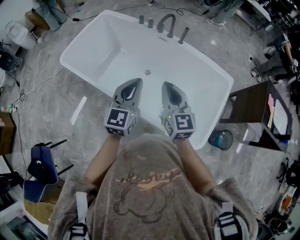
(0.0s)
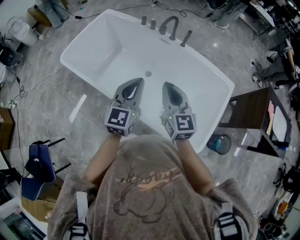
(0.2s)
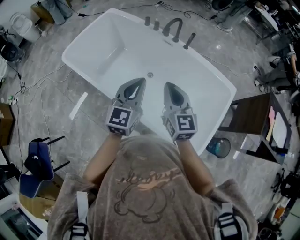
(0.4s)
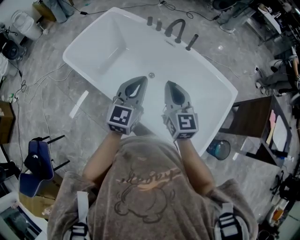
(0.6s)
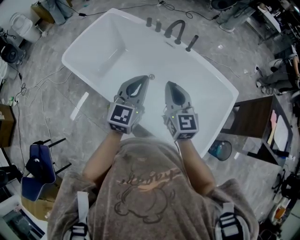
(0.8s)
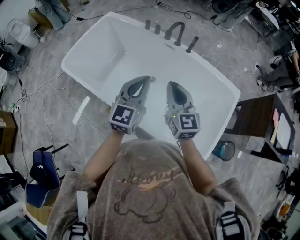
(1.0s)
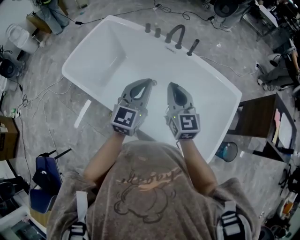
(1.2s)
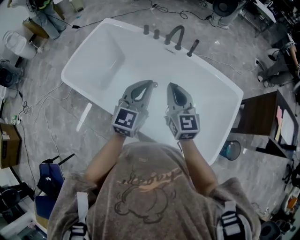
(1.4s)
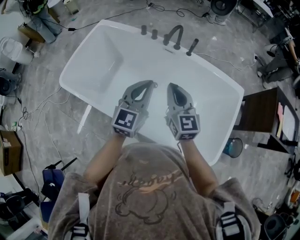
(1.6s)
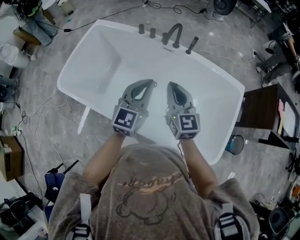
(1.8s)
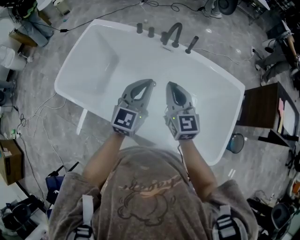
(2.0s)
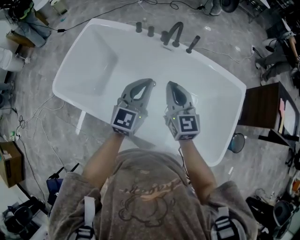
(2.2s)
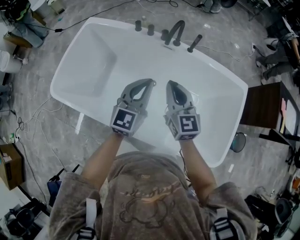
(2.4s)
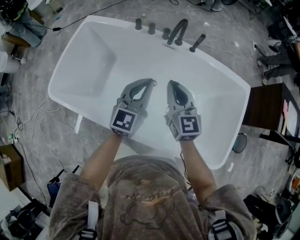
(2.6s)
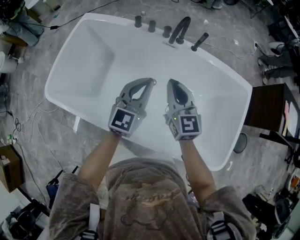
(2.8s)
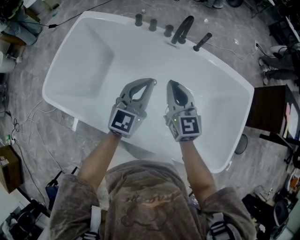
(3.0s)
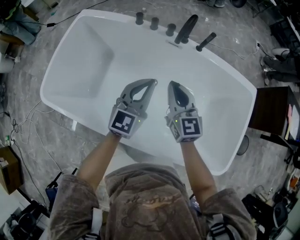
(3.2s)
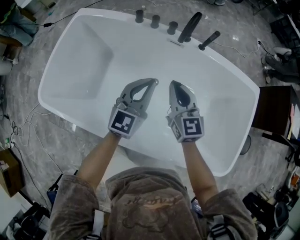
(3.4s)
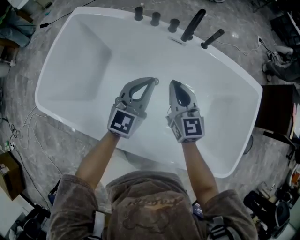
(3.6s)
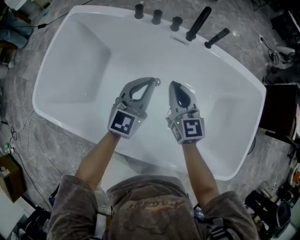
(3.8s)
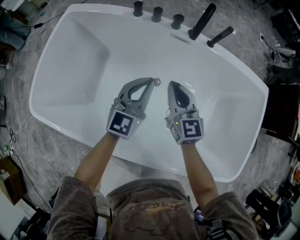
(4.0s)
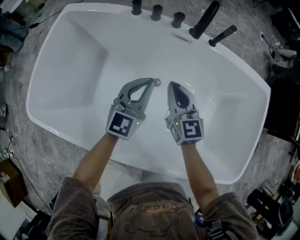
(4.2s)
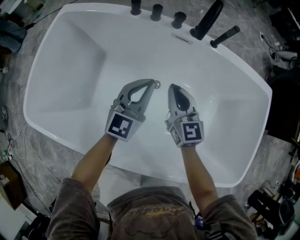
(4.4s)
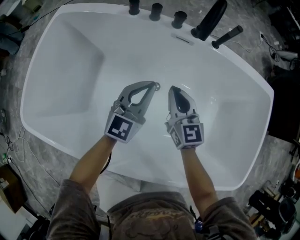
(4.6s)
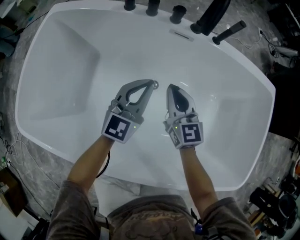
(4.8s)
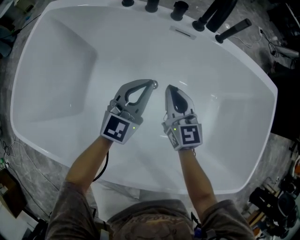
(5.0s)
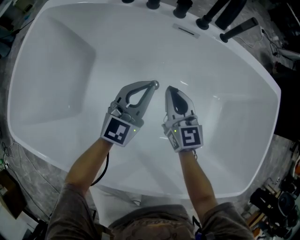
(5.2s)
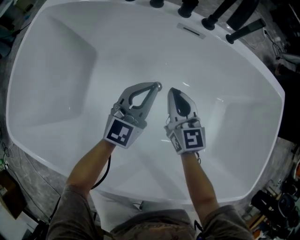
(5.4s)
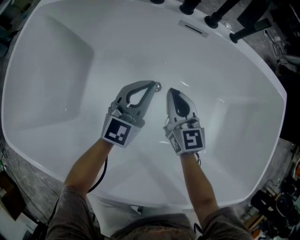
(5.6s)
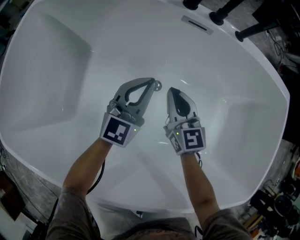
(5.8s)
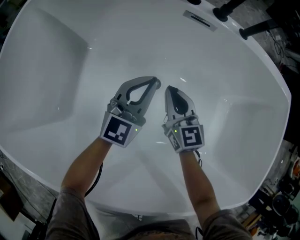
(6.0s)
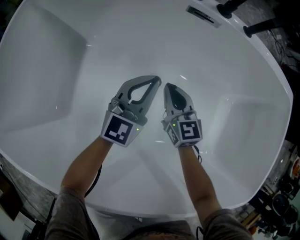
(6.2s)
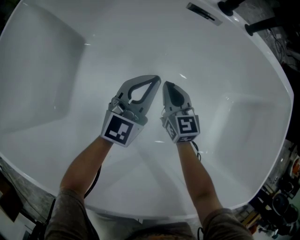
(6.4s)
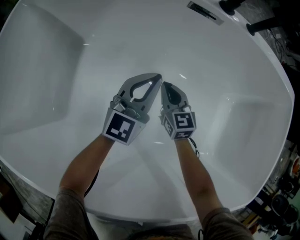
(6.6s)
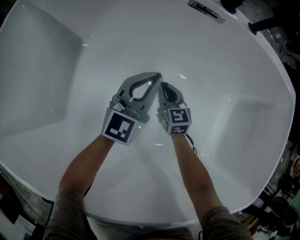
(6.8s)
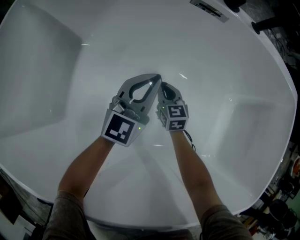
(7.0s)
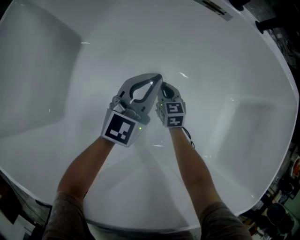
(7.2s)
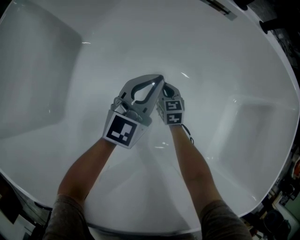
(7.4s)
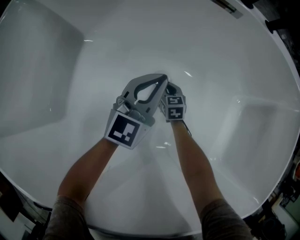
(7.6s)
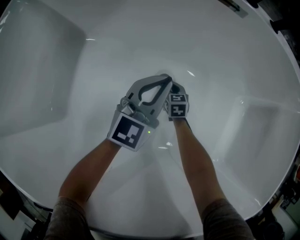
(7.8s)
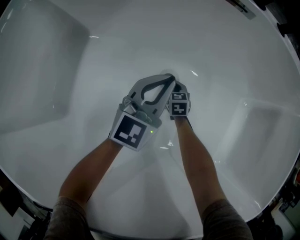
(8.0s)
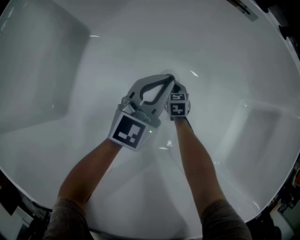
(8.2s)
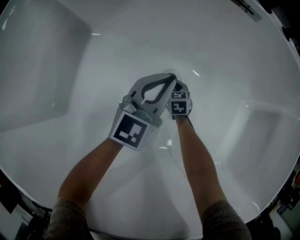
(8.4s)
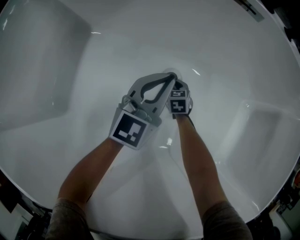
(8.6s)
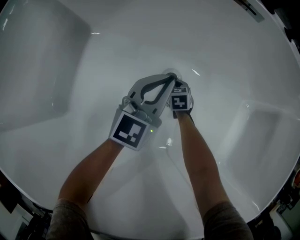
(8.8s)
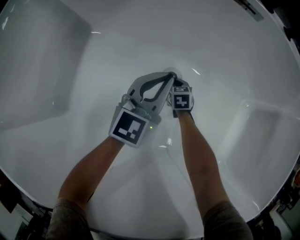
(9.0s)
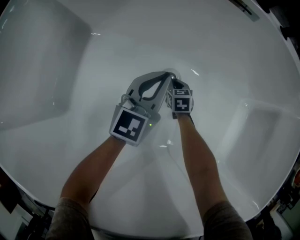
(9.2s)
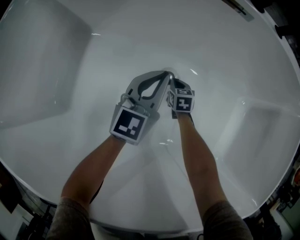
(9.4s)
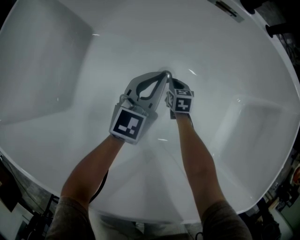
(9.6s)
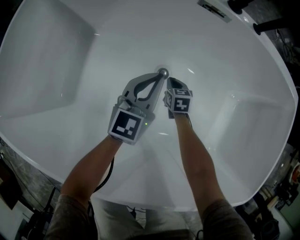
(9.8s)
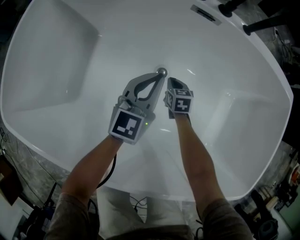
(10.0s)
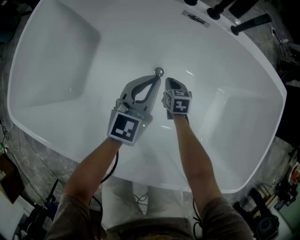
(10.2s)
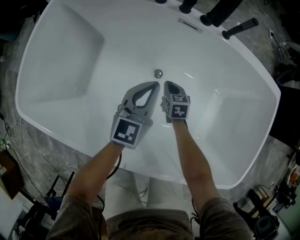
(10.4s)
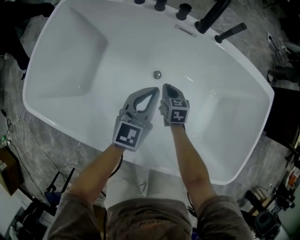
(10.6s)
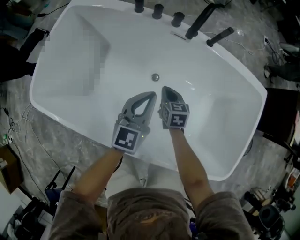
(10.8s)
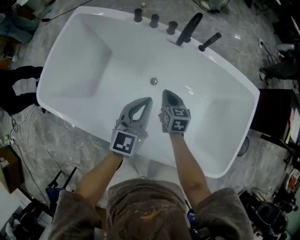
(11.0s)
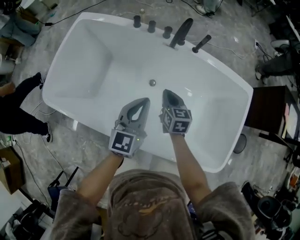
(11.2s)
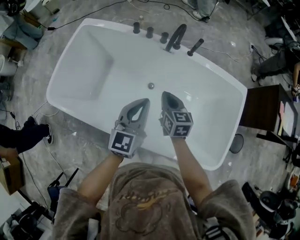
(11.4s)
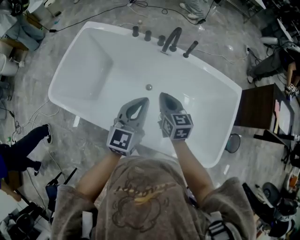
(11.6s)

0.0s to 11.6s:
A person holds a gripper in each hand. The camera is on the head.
0.0s to 1.4s: Both grippers move forward, about 15 cm.
1.4s to 2.8s: The grippers both shift forward, downward and to the left by about 15 cm.
2.8s to 4.4s: The right gripper is displaced downward by roughly 20 cm; the left gripper heads downward and forward, covering about 25 cm.
4.4s to 5.8s: Both grippers move downward, approximately 15 cm.
5.8s to 7.2s: The left gripper travels downward by some 10 cm, while the right gripper travels downward by some 25 cm, and turns by roughly 20 degrees.
7.2s to 8.8s: The left gripper travels downward by roughly 5 cm. The right gripper travels downward by about 10 cm.
8.8s to 10.2s: The grippers both shift upward by approximately 25 cm.
10.2s to 11.6s: The right gripper is displaced upward by approximately 50 cm, and swivels some 20 degrees. Meanwhile the left gripper moves upward and backward, roughly 40 cm.

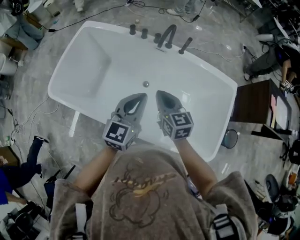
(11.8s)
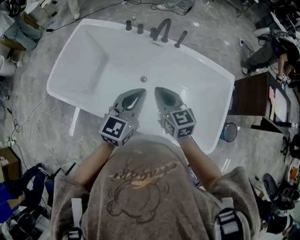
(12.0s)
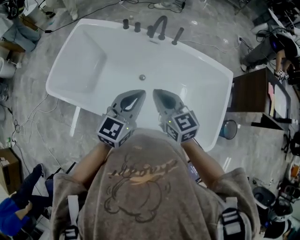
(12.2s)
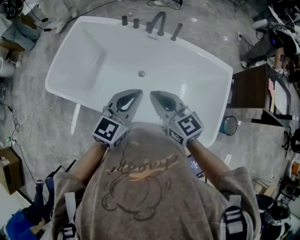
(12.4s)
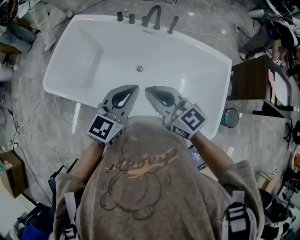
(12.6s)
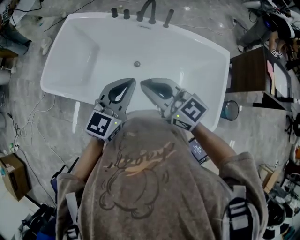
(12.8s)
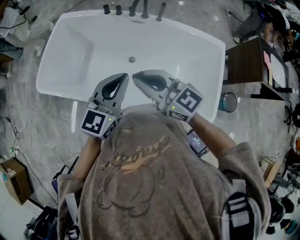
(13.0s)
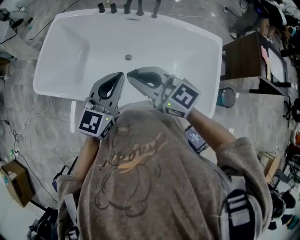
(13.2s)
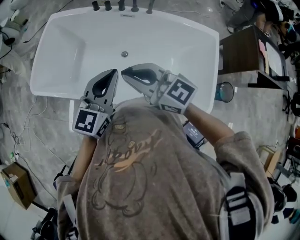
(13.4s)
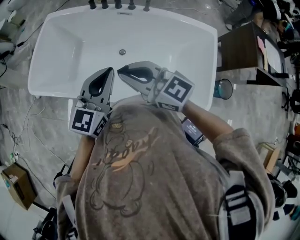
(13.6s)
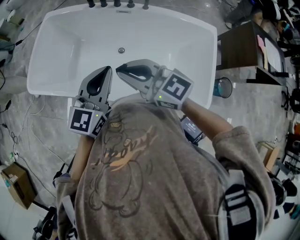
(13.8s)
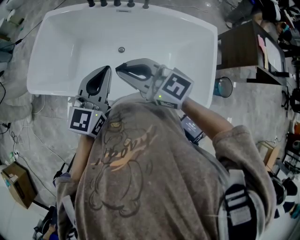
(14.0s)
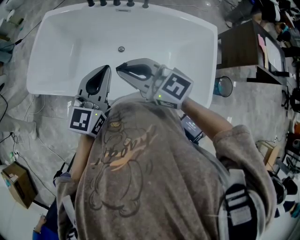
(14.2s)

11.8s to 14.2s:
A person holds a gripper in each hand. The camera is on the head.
11.8s to 13.0s: The left gripper travels backward by approximately 10 cm, while the right gripper heads backward and upward, covering some 15 cm, and swivels approximately 30 degrees.
13.0s to 14.2s: There are only small adjustments of the grippers.

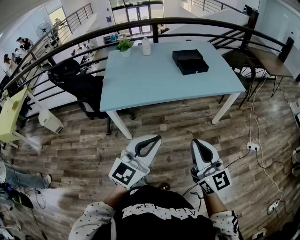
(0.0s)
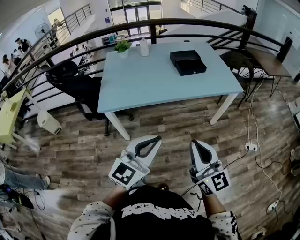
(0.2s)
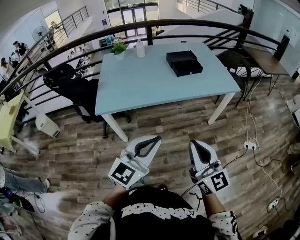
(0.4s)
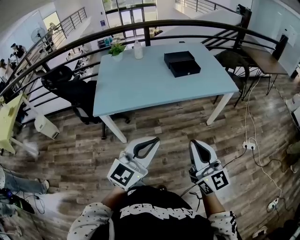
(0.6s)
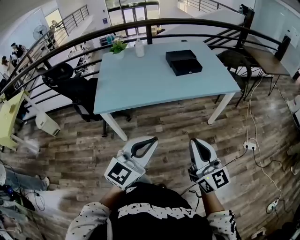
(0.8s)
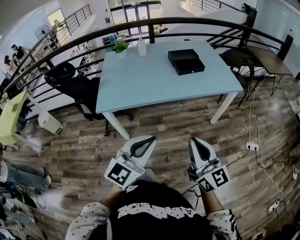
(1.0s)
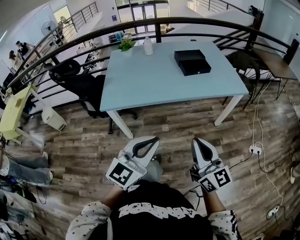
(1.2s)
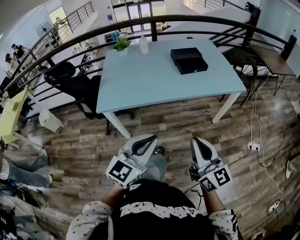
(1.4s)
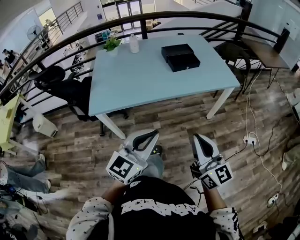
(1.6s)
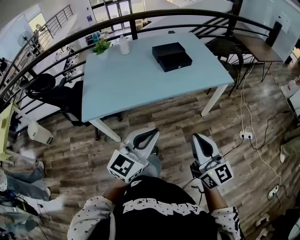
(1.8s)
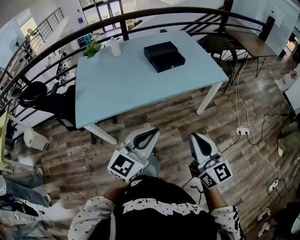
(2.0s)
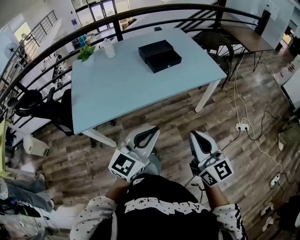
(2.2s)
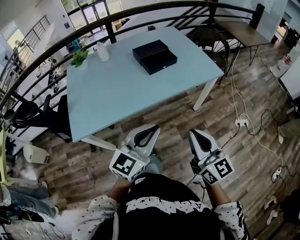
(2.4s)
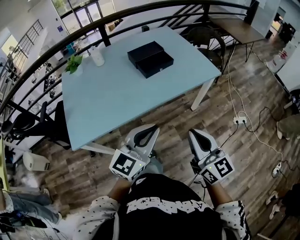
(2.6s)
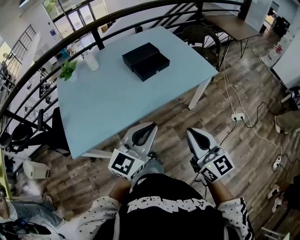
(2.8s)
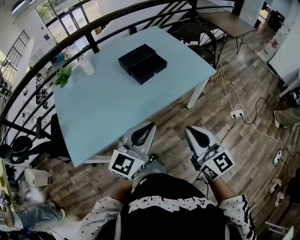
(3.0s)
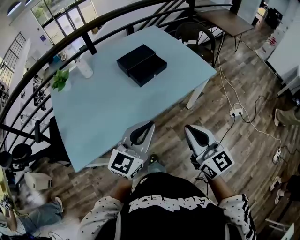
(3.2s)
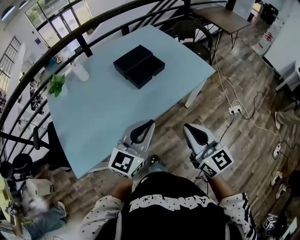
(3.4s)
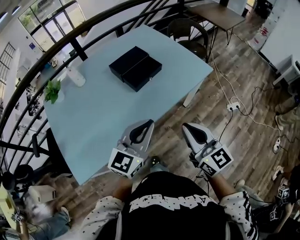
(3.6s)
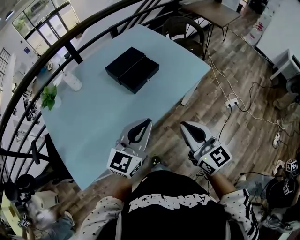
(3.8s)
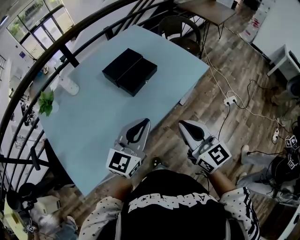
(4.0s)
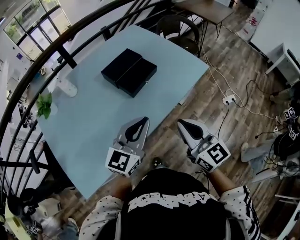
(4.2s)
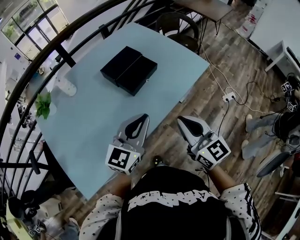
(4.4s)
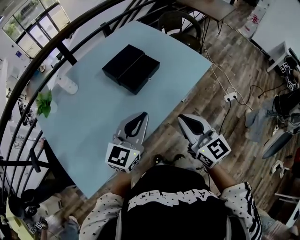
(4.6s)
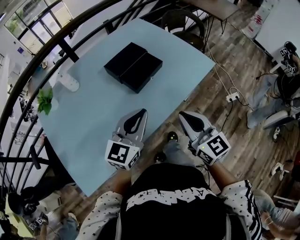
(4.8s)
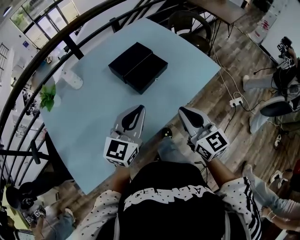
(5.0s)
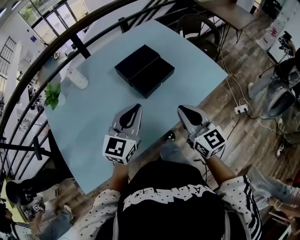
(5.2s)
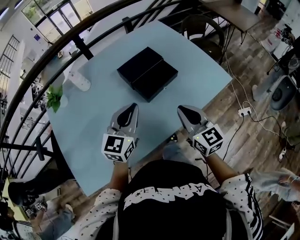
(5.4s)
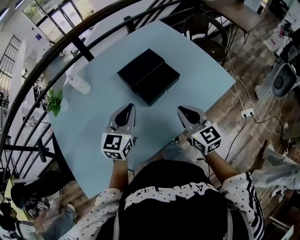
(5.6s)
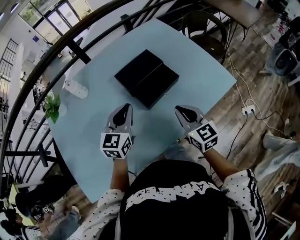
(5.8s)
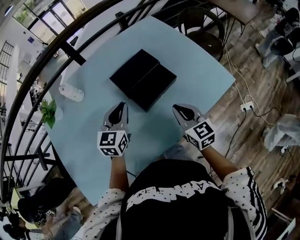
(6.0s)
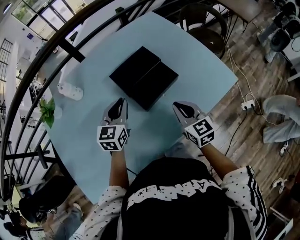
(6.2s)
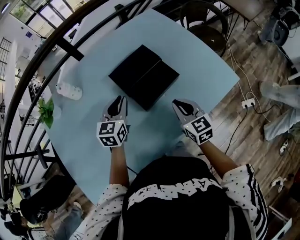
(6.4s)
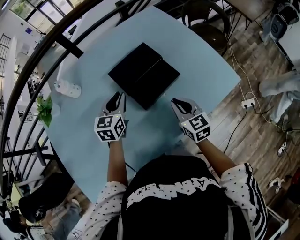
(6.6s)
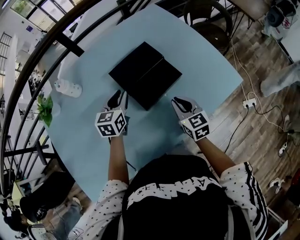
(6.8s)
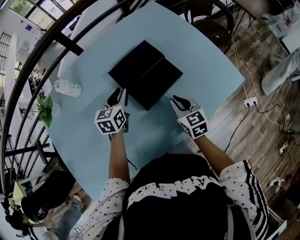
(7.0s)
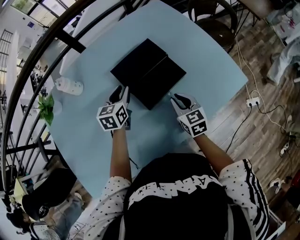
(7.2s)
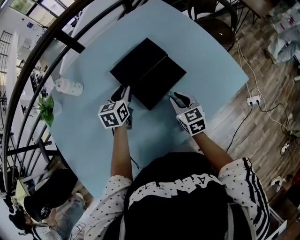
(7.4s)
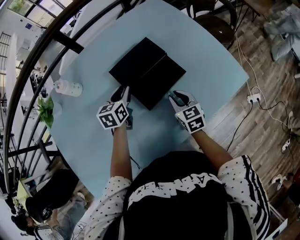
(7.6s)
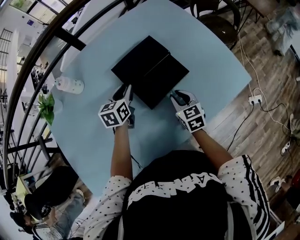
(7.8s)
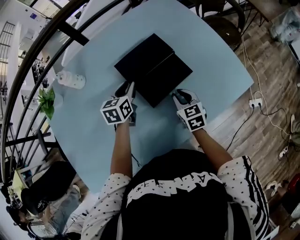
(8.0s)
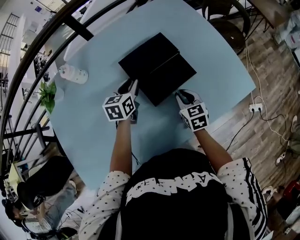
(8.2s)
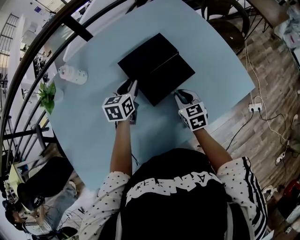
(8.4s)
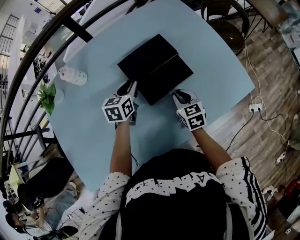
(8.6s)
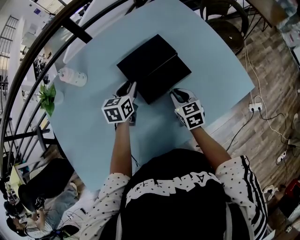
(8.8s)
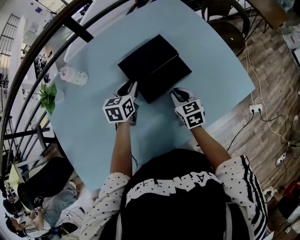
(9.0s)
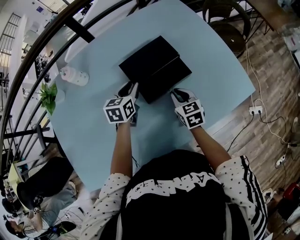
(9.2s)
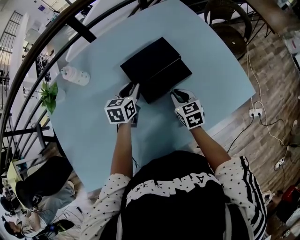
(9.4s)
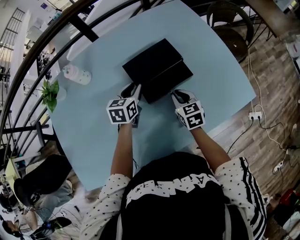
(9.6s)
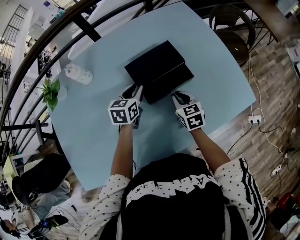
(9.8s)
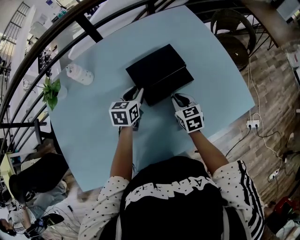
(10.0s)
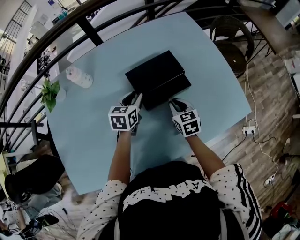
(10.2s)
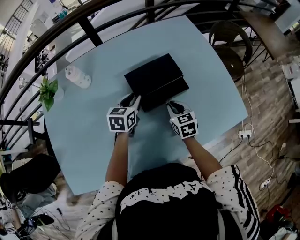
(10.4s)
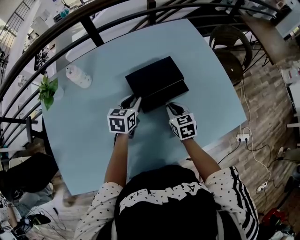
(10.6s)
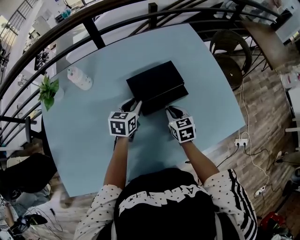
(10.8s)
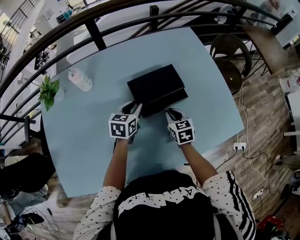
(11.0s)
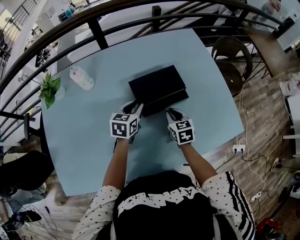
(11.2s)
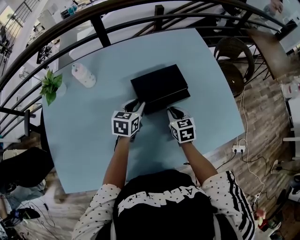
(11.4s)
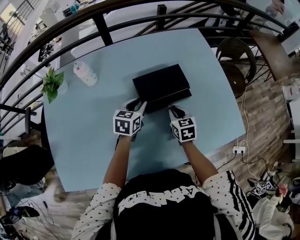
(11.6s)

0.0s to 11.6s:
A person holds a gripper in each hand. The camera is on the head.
0.0s to 1.4s: The right gripper moves roughly 5 cm.
1.4s to 2.8s: Both grippers travel together forward, approximately 20 cm.
2.8s to 4.4s: The two grippers go roughly 20 cm forward and to the left.
4.4s to 5.8s: The left gripper travels forward and to the left by approximately 25 cm, and swivels about 30 degrees. Meanwhile the right gripper moves forward and downward, some 25 cm.
5.8s to 7.2s: The left gripper moves forward and downward, some 20 cm, and changes its angle by some 20 degrees, while the right gripper travels downward and forward by about 15 cm.
7.2s to 8.8s: There are only small adjustments of the grippers.
8.8s to 10.2s: The grippers move only a little.
10.2s to 11.6s: The grippers make only small movements.
